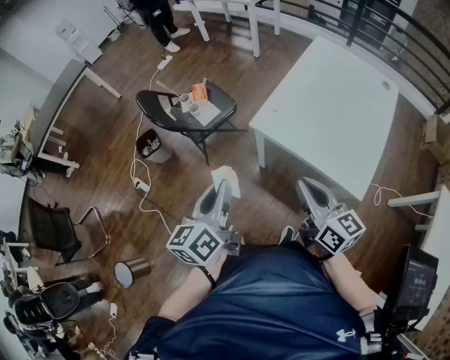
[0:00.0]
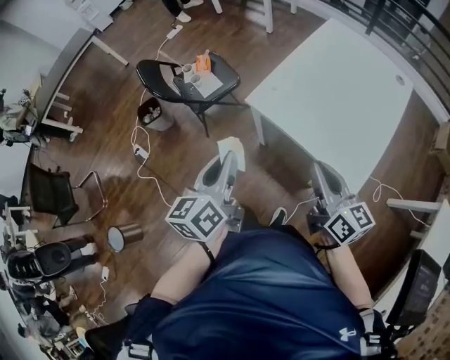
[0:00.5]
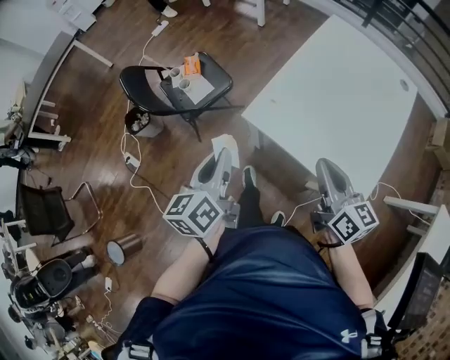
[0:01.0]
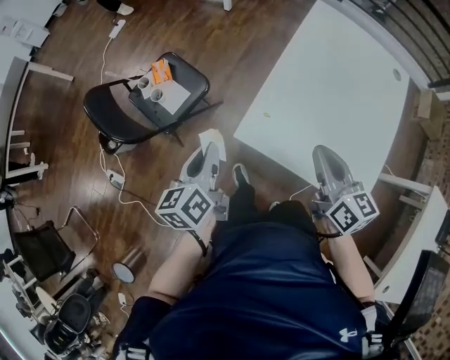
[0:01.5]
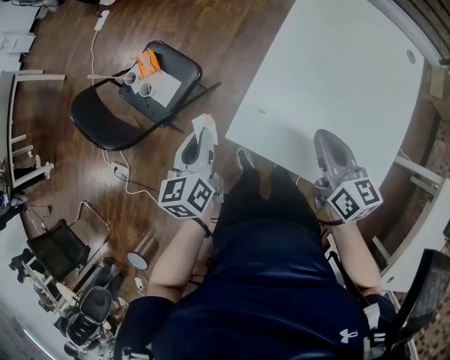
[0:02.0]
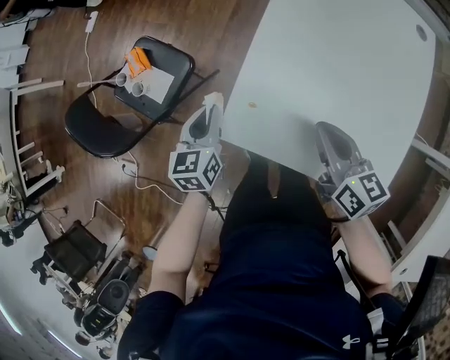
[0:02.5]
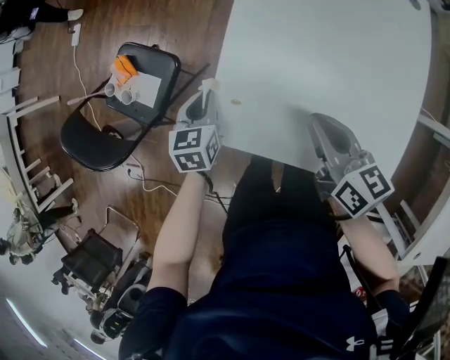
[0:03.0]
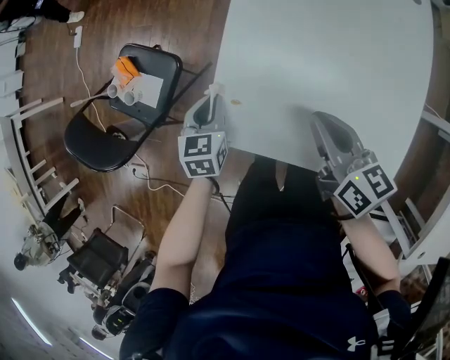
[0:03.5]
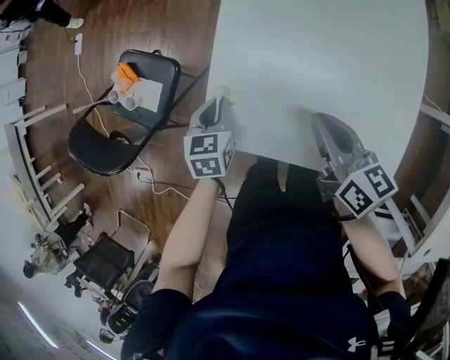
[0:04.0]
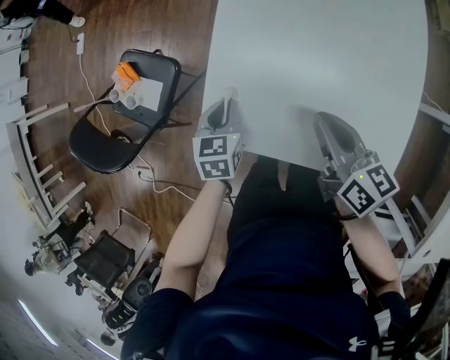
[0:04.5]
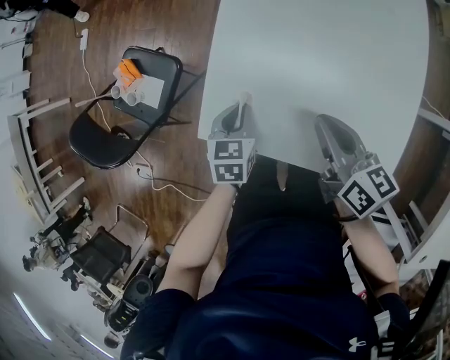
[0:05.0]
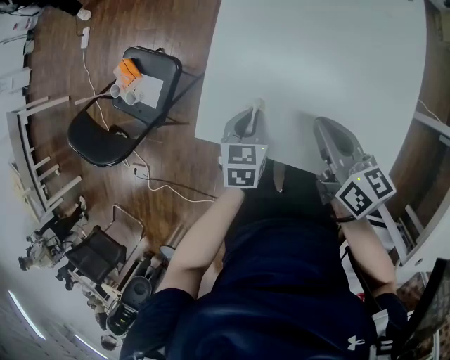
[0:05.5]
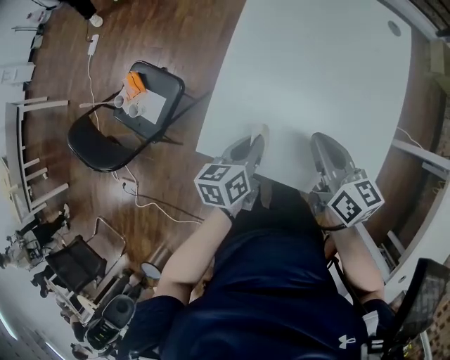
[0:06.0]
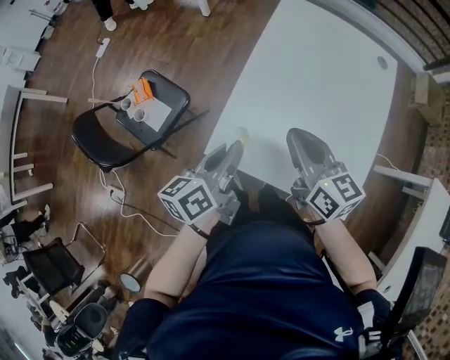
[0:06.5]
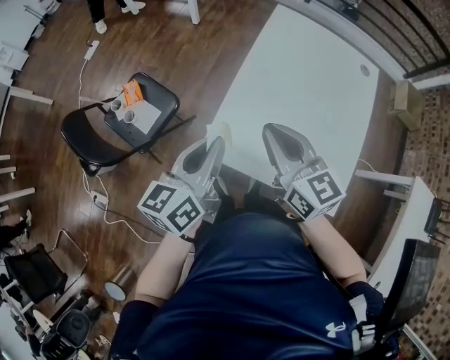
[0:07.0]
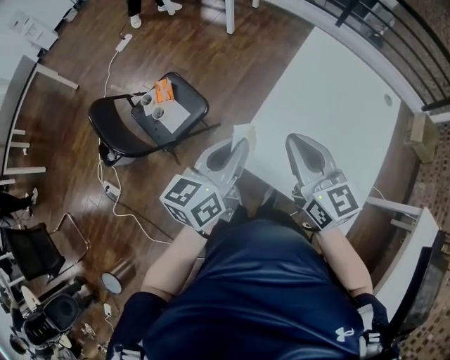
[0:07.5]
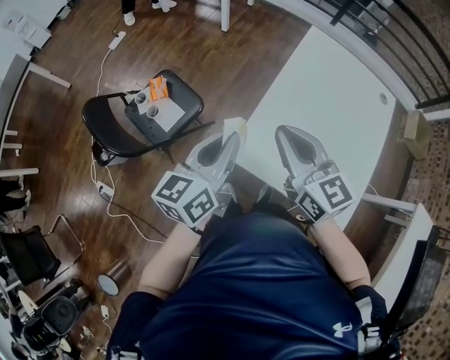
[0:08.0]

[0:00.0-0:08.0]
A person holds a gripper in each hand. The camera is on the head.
0:00.0 to 0:02.0: The right gripper heads forward, downward and to the right, covering about 30 cm, and swivels approximately 20 degrees. Meanwhile the left gripper heads forward and downward, covering some 35 cm.
0:02.0 to 0:04.0: The left gripper goes some 20 cm downward and to the right, and turns by about 40 degrees. Meanwhile the right gripper heads downward and to the right, covering roughly 10 cm.
0:04.0 to 0:06.0: The left gripper heads to the right, upward and backward, covering some 15 cm, and rotates about 30 degrees.
0:06.0 to 0:08.0: The left gripper shifts about 30 cm upward and to the left, and turns by some 30 degrees. The right gripper travels to the left and upward by about 25 cm, and swivels approximately 40 degrees.

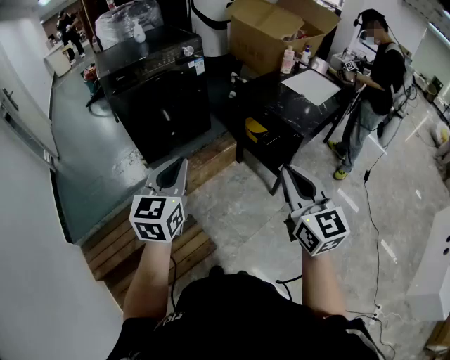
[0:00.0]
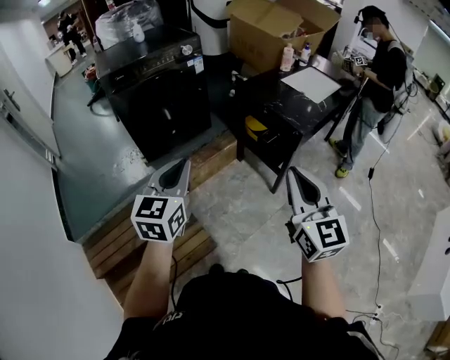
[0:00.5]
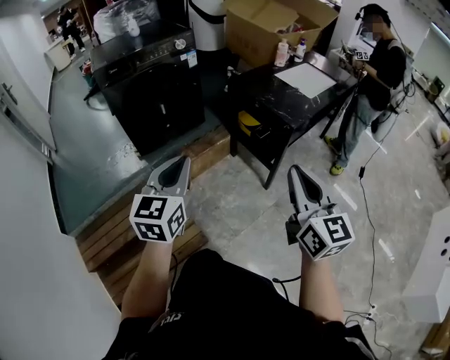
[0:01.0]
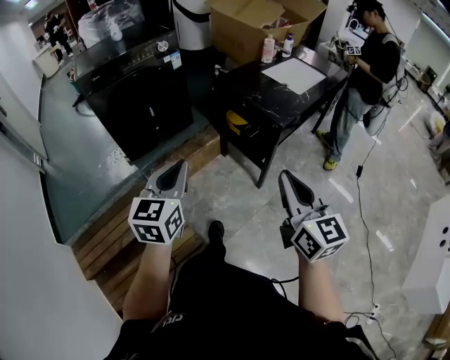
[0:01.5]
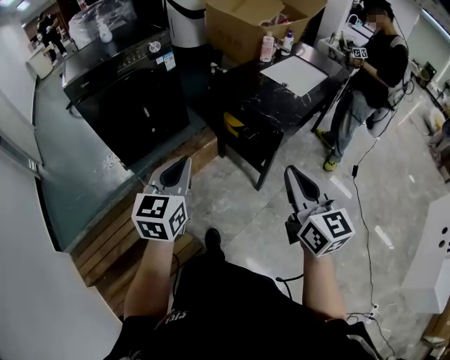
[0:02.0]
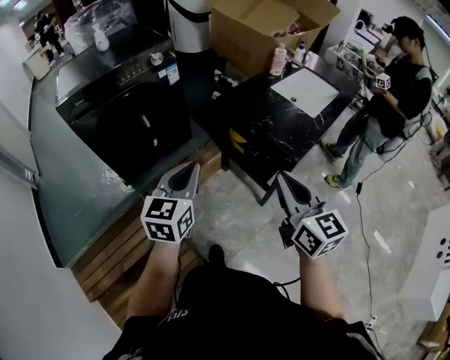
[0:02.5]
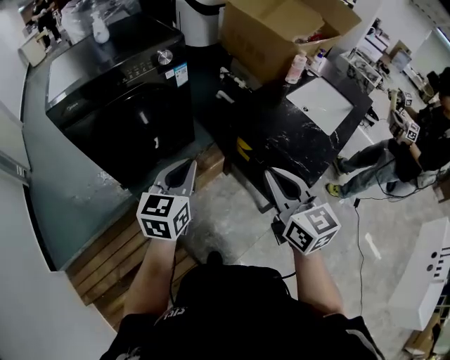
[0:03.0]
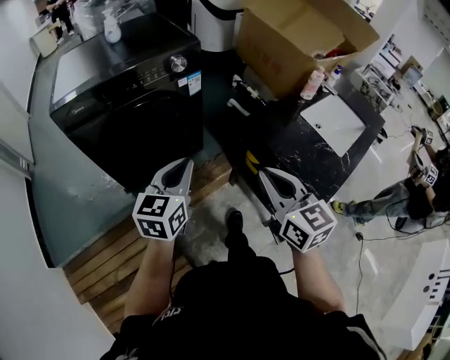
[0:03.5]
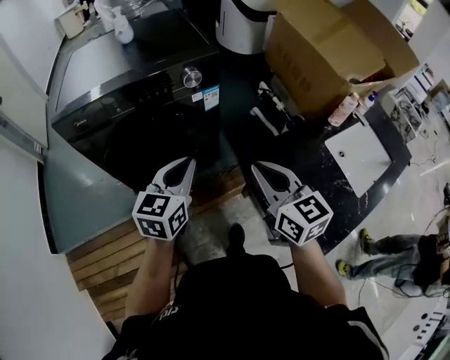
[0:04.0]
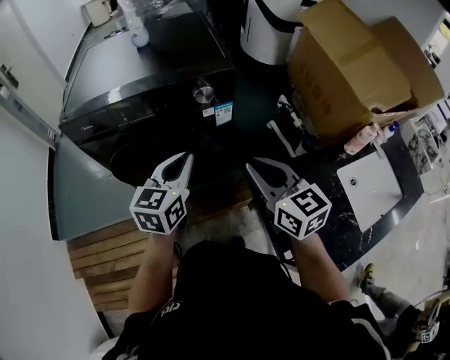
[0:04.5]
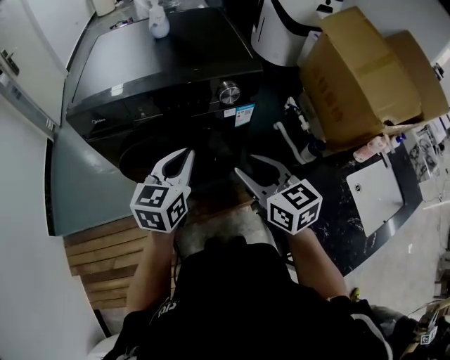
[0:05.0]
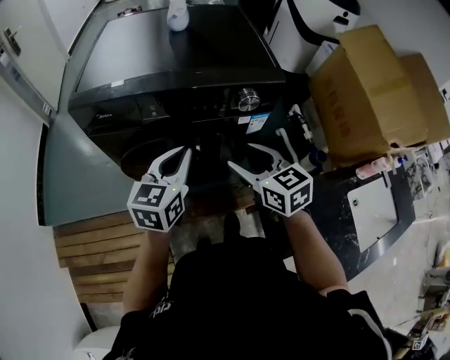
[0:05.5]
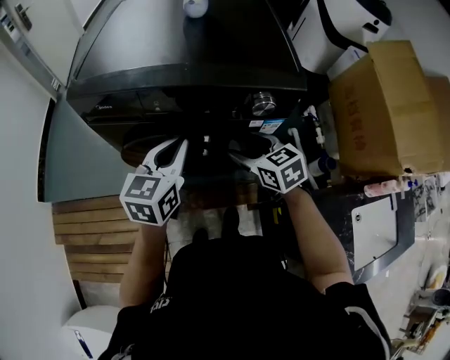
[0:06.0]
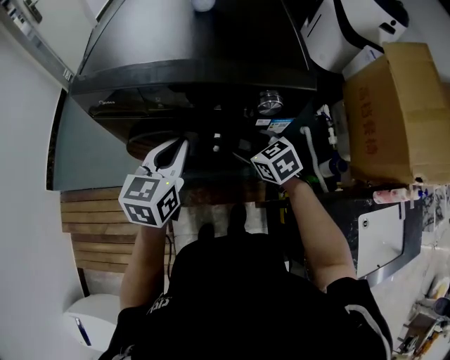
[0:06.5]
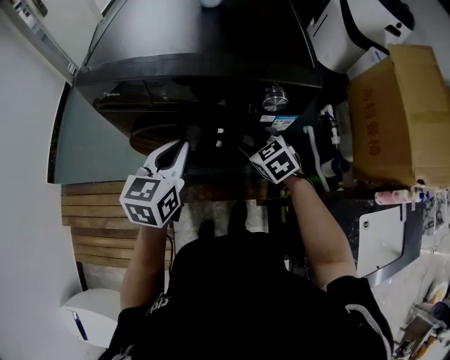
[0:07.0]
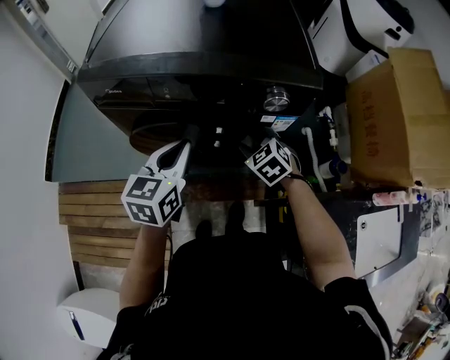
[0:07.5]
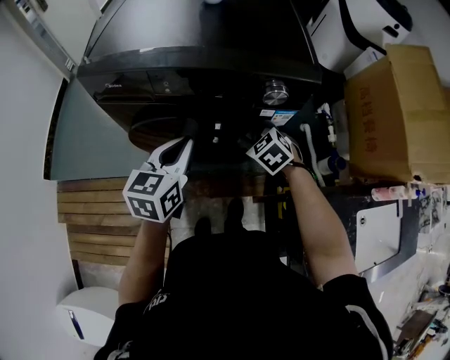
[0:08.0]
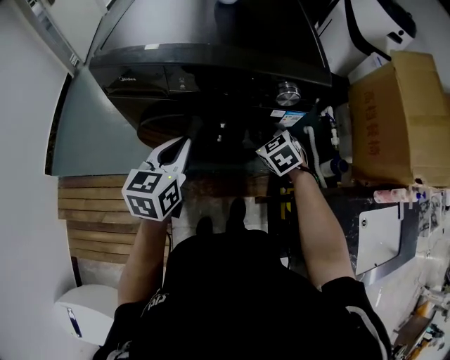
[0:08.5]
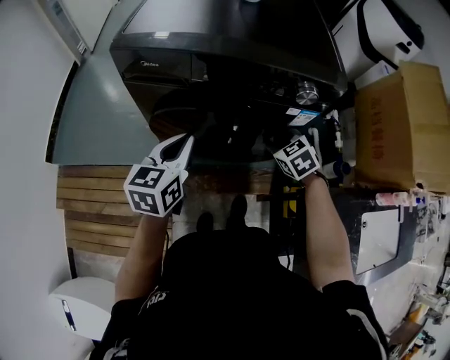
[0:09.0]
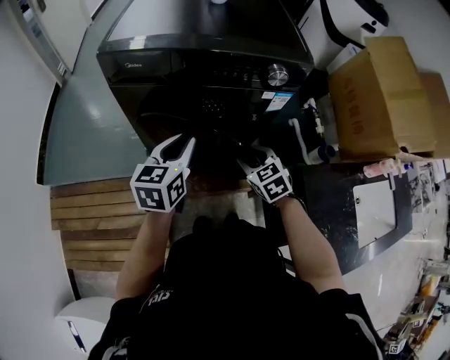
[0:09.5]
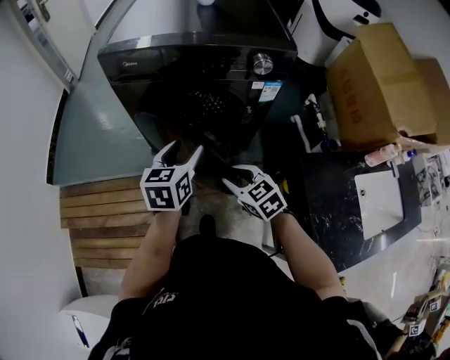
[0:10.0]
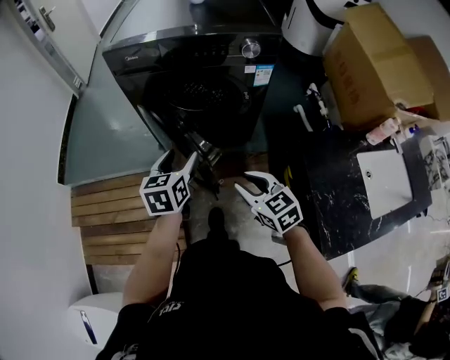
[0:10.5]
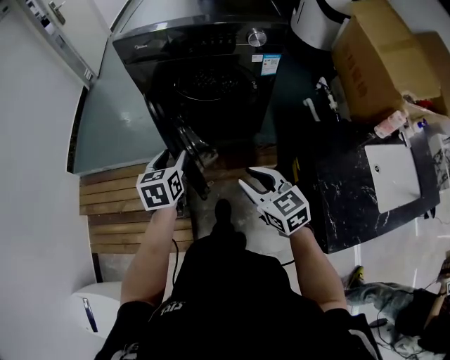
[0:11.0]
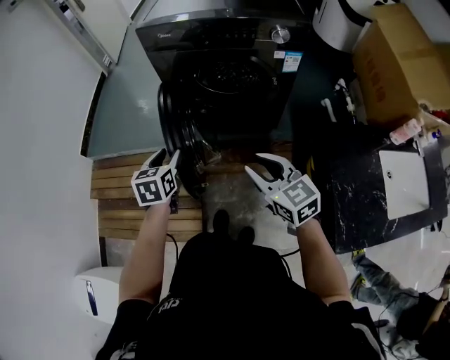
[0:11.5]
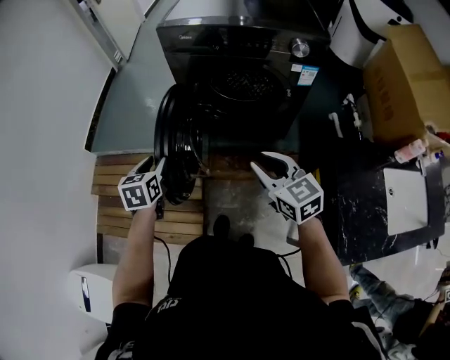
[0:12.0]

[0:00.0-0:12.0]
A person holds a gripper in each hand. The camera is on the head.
0:00.0 to 0:02.0: Both grippers move to the right and forward, some 15 cm.
0:02.0 to 0:04.0: The pair of grippers is taken forward, about 50 cm. The right gripper rotates roughly 30 degrees.
0:04.0 to 0:06.0: The right gripper shifts some 30 cm forward and downward, turns by about 40 degrees, and opens its fingers. The left gripper goes roughly 20 cm forward and to the left, and rotates some 20 degrees.
0:06.0 to 0:08.0: The right gripper shifts about 5 cm downward, turns by approximately 30 degrees, and closes up.
0:08.0 to 0:10.0: The right gripper shifts approximately 25 cm backward, and swivels approximately 20 degrees. Meanwhile the left gripper shifts some 10 cm backward, and opens.
0:10.0 to 0:12.0: The right gripper shifts approximately 15 cm upward, backward and to the left; the left gripper shifts approximately 25 cm to the left, and rotates roughly 20 degrees.

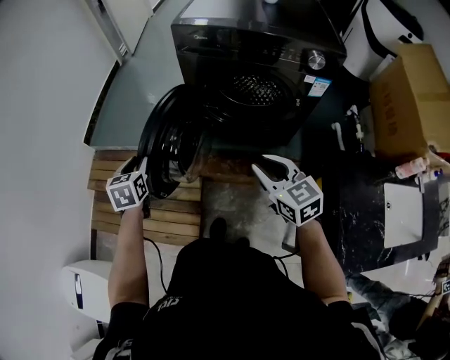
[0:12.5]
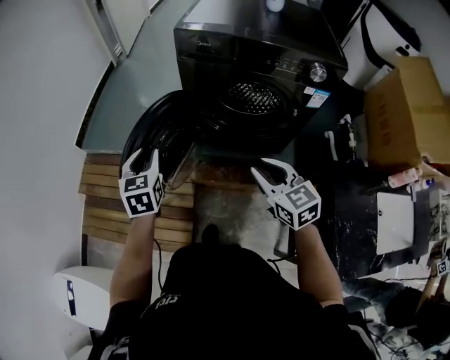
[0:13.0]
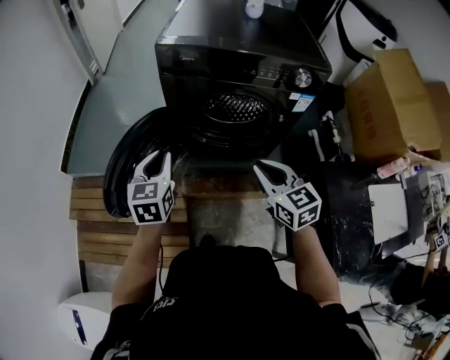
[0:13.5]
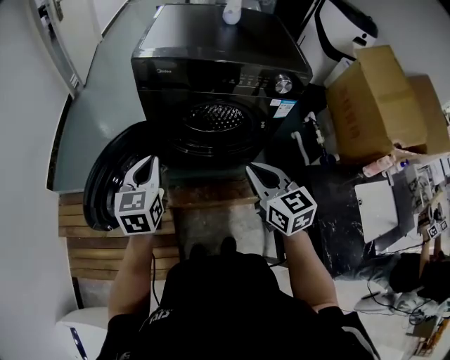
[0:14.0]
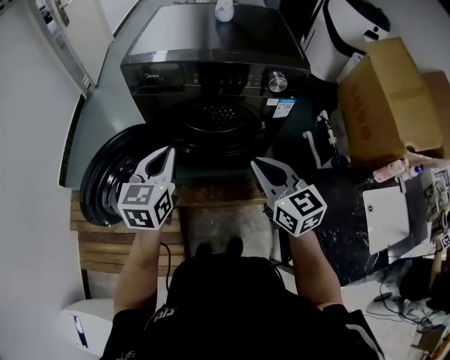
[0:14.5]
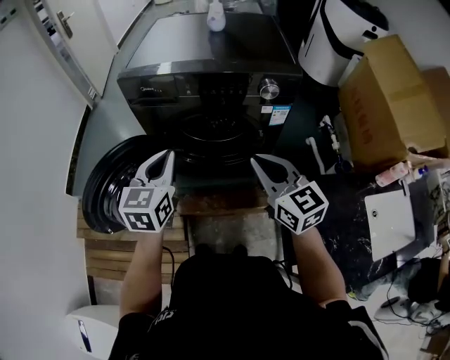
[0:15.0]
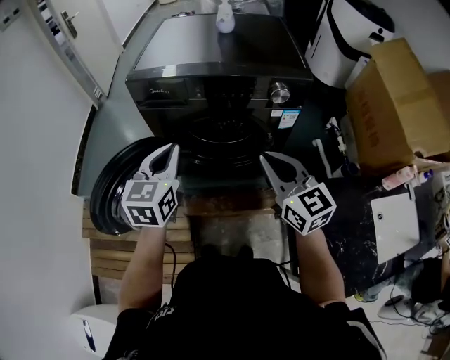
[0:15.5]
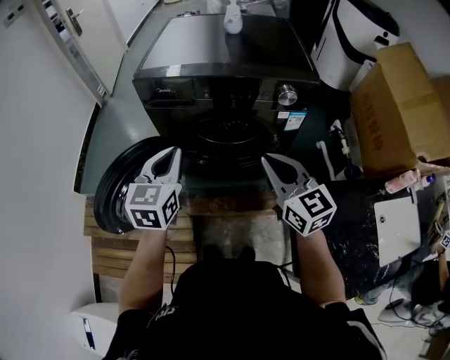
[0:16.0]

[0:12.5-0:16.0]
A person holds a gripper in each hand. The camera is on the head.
0:12.5 to 0:14.5: The left gripper moves to the right and upward, approximately 30 cm, rotates roughly 30 degrees, and closes up. Meanwhile the right gripper is displaced to the right, forward and upward by roughly 15 cm.
0:14.5 to 0:16.0: The grippers make only small movements.

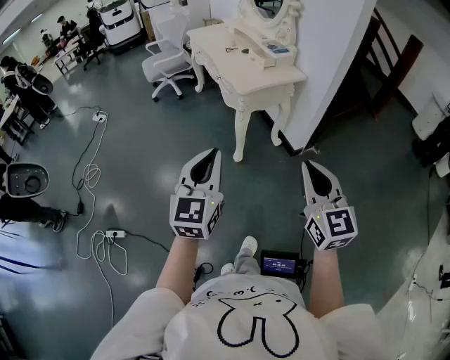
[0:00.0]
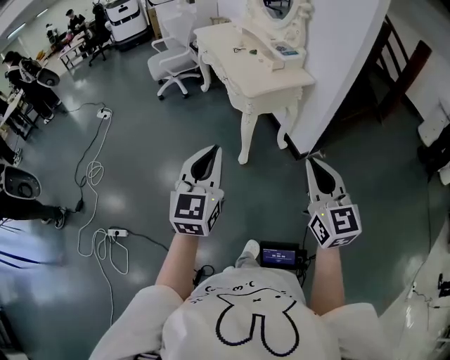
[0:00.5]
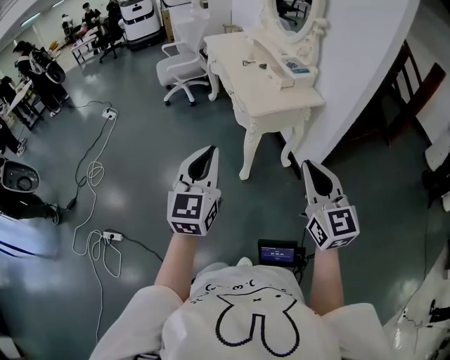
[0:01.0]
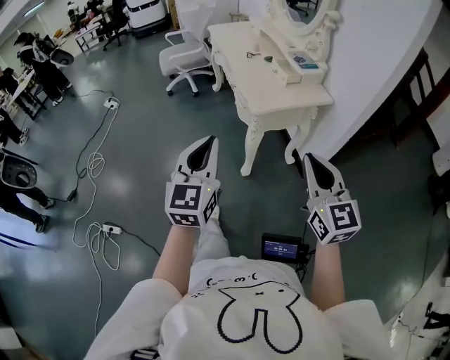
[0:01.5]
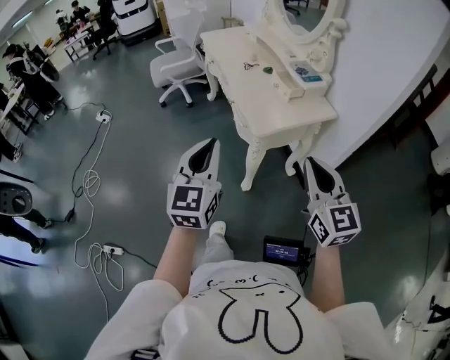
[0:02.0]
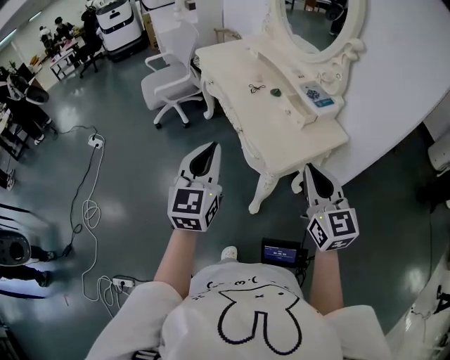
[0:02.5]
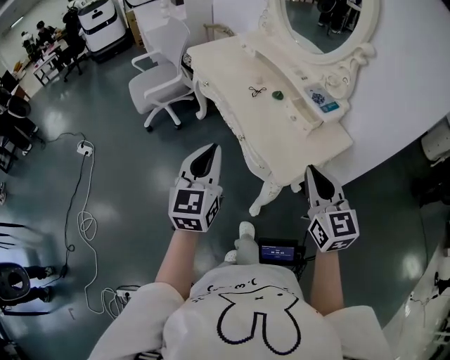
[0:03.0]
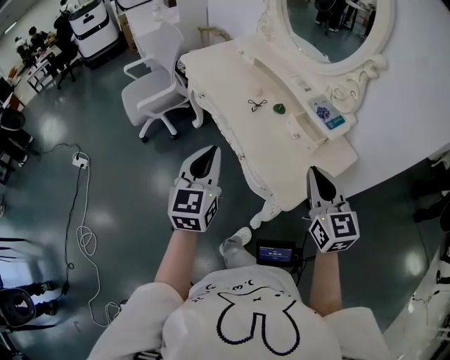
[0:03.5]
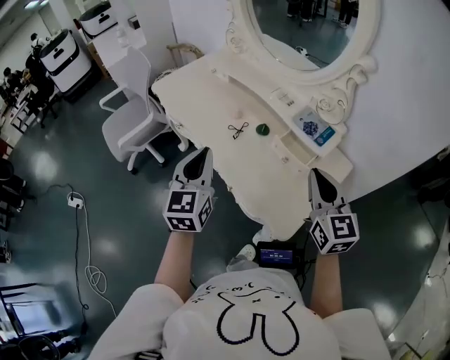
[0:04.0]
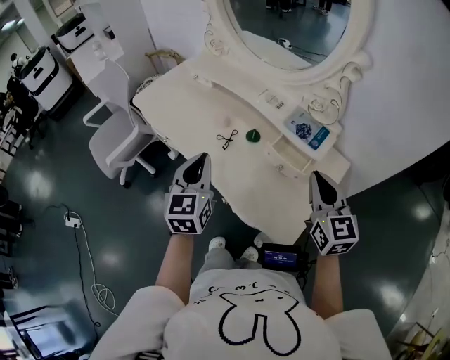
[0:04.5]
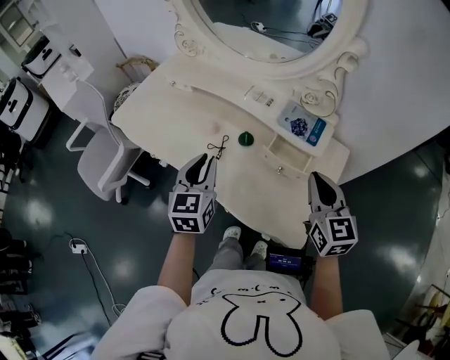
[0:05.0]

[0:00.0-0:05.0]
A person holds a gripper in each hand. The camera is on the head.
0:00.0 to 0:02.5: The two grippers travel together, forward, some 50 cm.
0:02.5 to 0:05.0: The left gripper shifts by some 50 cm, and swivels about 30 degrees; the right gripper shifts by roughly 30 cm, and changes its angle by some 40 degrees.
